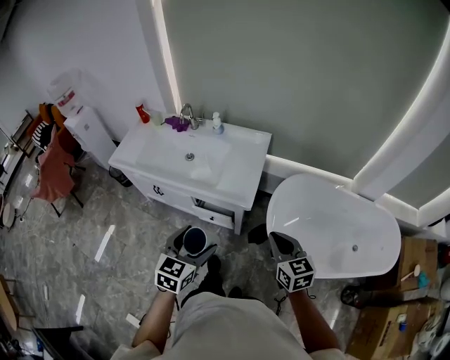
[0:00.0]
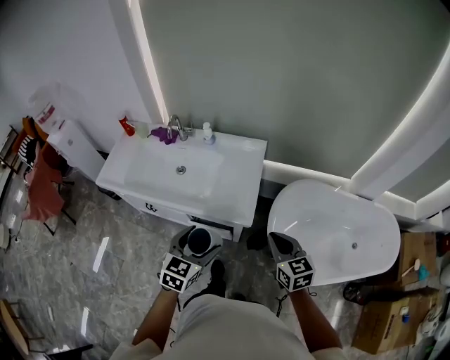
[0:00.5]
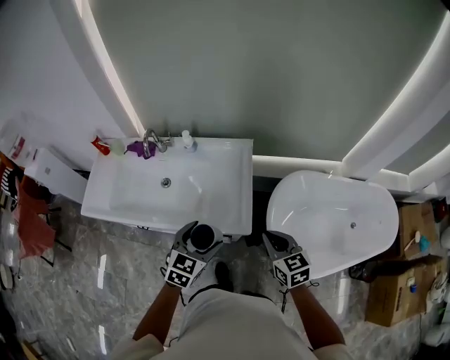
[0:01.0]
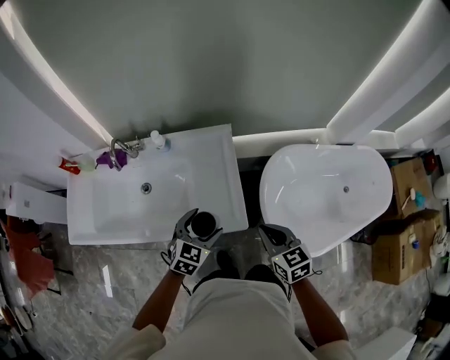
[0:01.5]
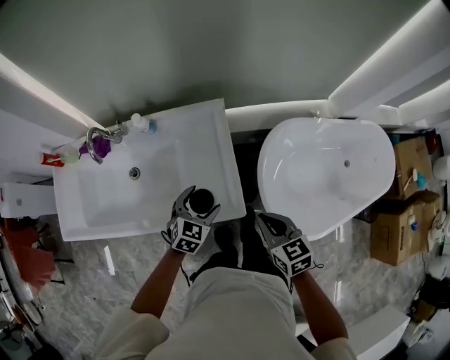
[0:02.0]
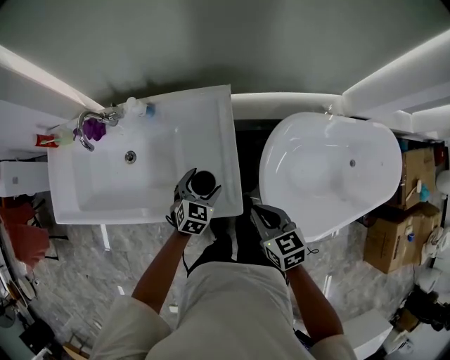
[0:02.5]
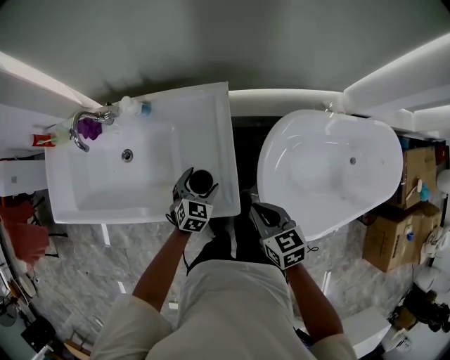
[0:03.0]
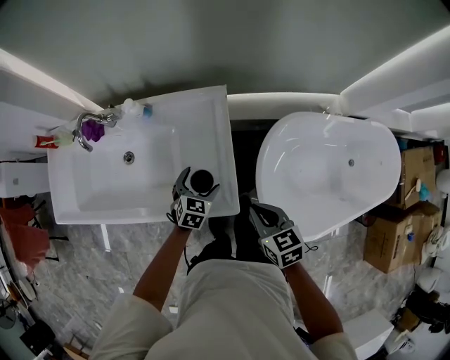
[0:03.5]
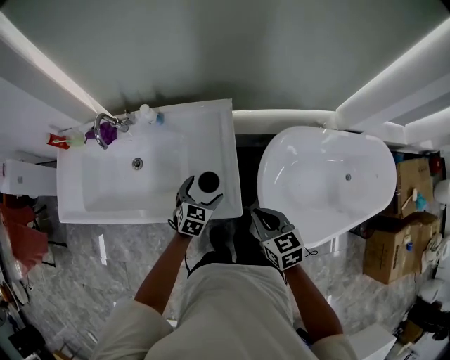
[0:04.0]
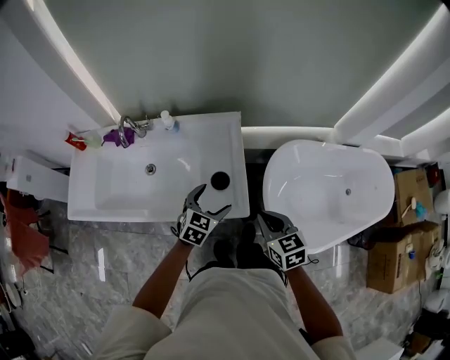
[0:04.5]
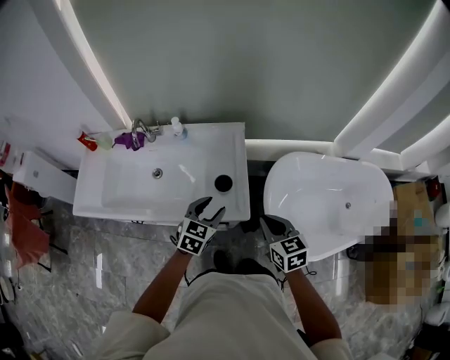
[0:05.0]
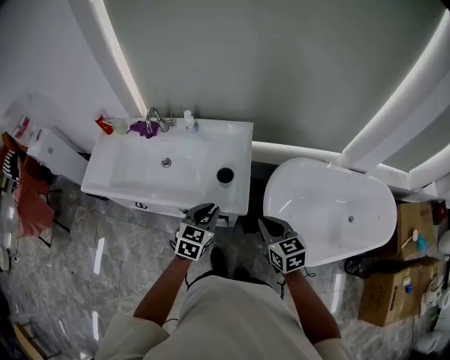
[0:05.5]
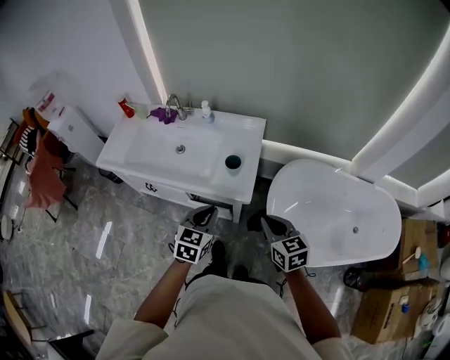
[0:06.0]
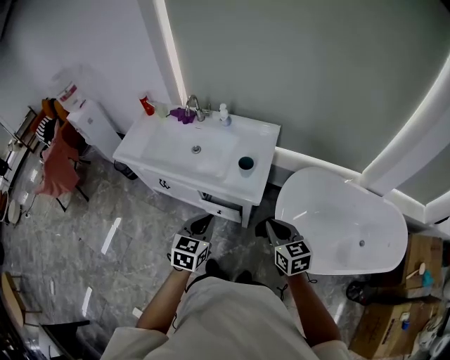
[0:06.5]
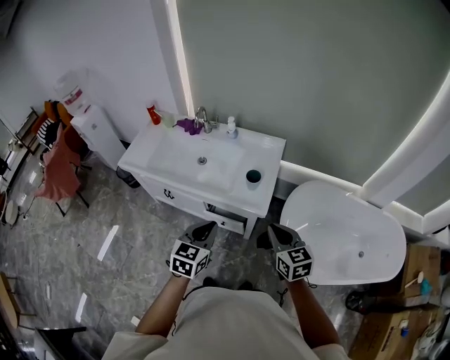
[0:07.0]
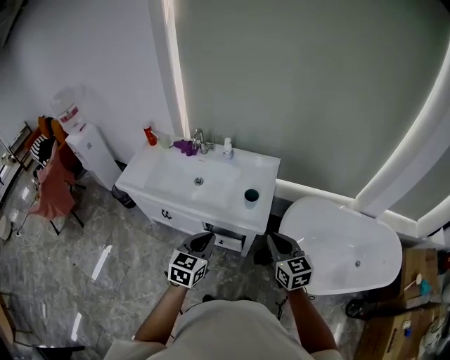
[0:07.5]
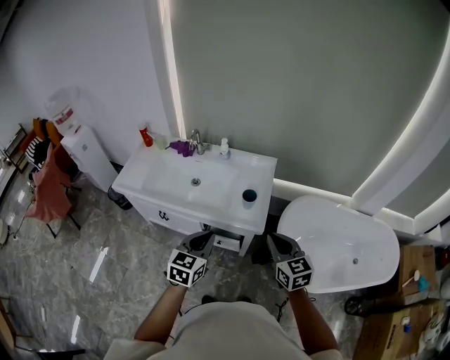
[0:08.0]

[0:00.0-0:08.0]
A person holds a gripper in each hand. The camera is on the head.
0:00.0 to 0:02.0: The right gripper travels forward and downward by some 25 cm, and rotates about 20 degrees; the left gripper heads forward and downward, covering roughly 40 cm, and turns by about 30 degrees.
0:04.0 to 0:06.0: The right gripper goes some 20 cm backward and upward; the left gripper heads backward and upward, covering approximately 30 cm, rotates some 20 degrees, and closes up.
0:06.0 to 0:08.0: The left gripper moves to the left and upward, roughly 10 cm, while the right gripper is displaced upward and to the left by roughly 10 cm.

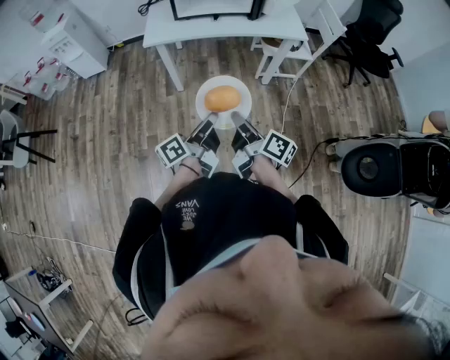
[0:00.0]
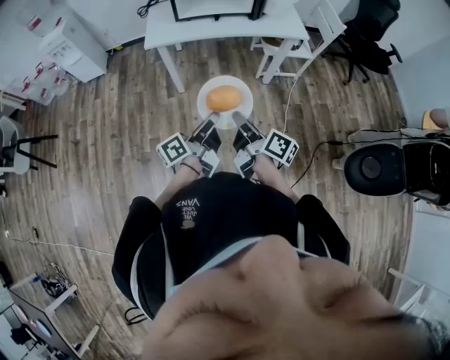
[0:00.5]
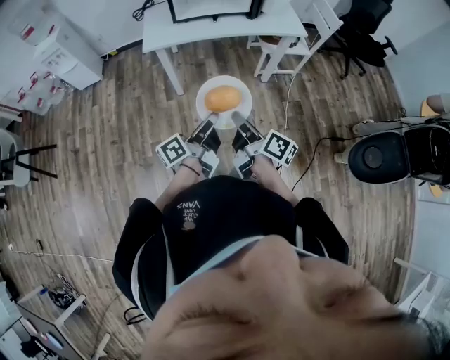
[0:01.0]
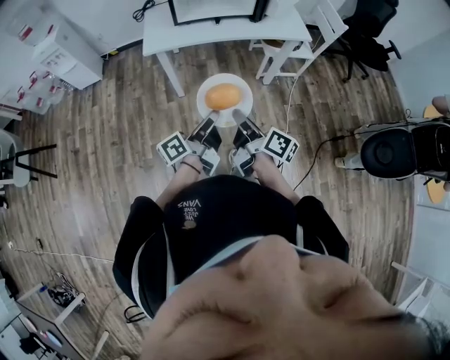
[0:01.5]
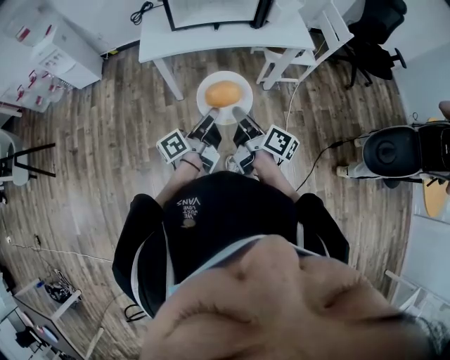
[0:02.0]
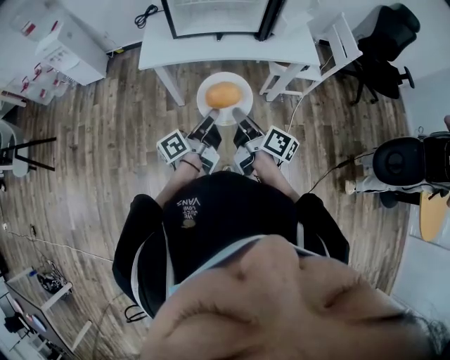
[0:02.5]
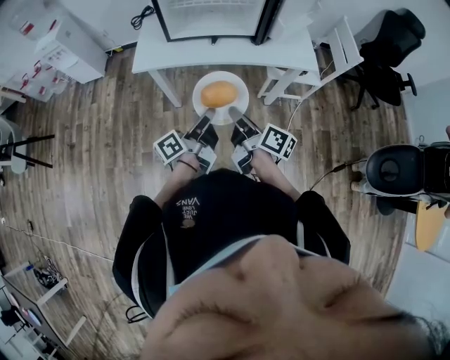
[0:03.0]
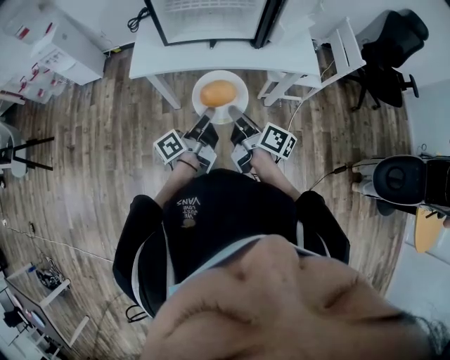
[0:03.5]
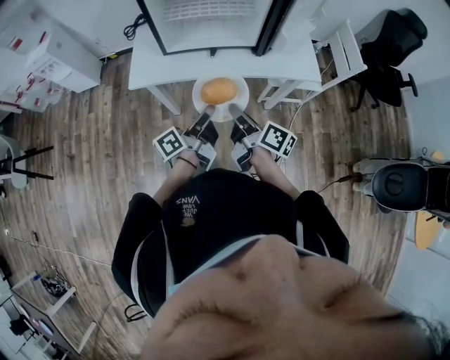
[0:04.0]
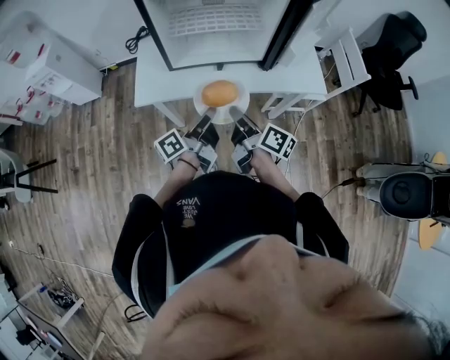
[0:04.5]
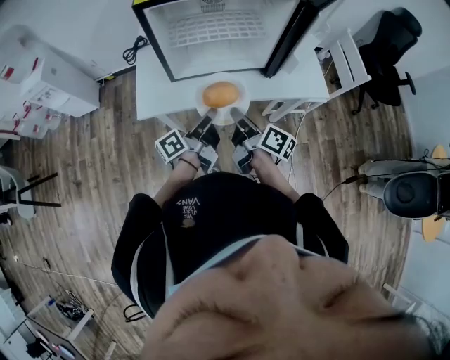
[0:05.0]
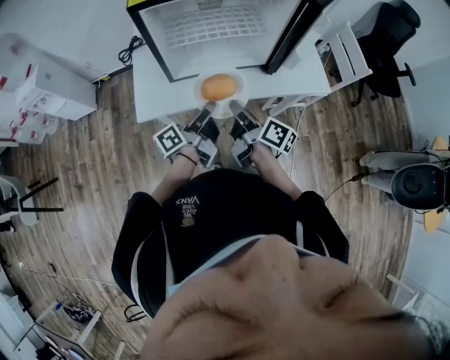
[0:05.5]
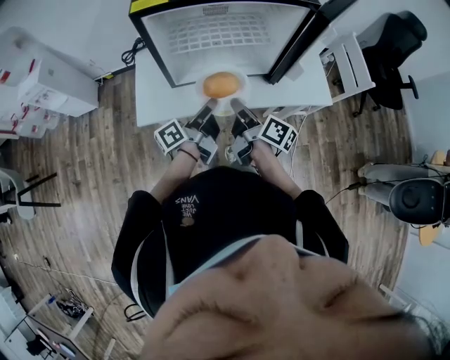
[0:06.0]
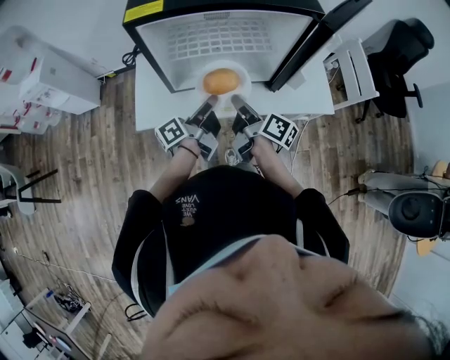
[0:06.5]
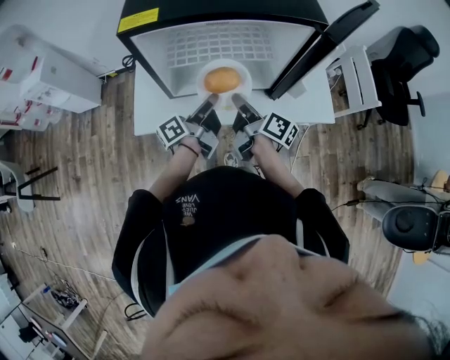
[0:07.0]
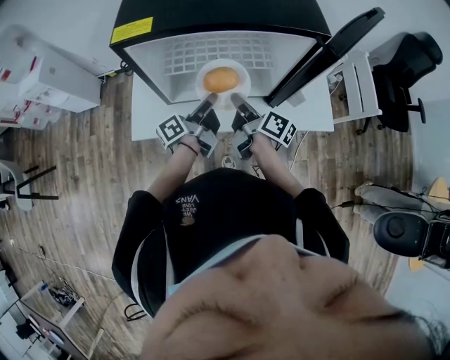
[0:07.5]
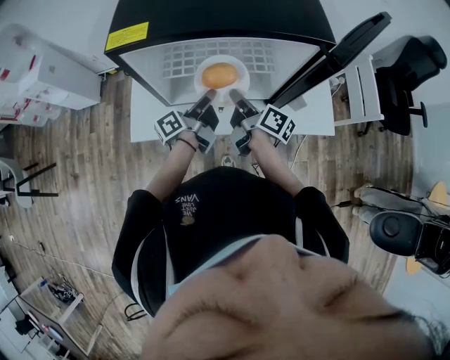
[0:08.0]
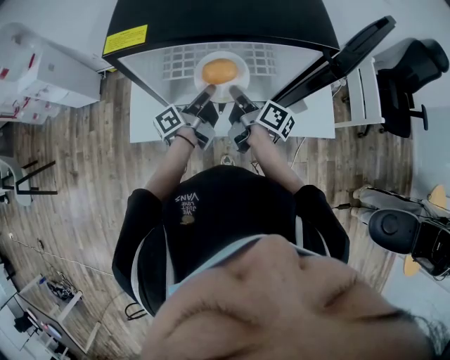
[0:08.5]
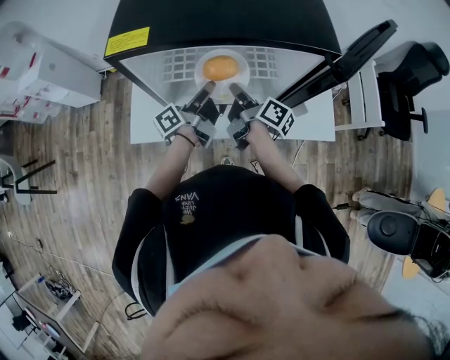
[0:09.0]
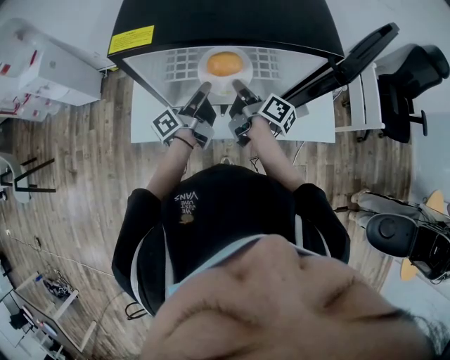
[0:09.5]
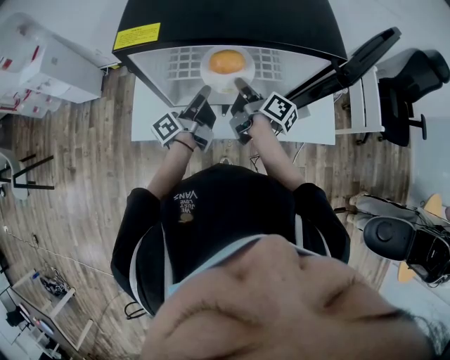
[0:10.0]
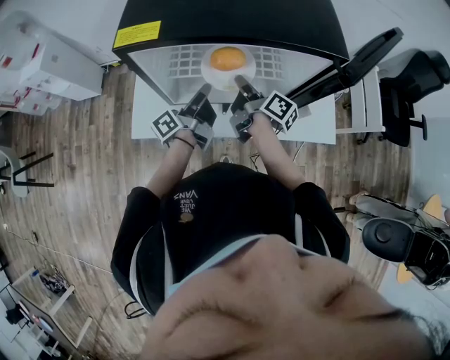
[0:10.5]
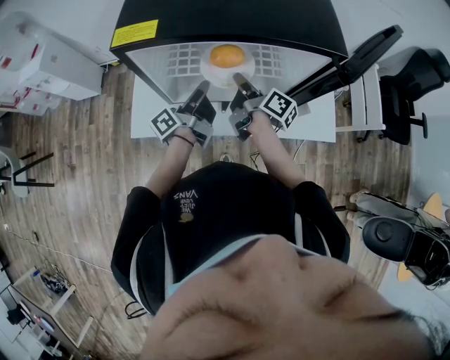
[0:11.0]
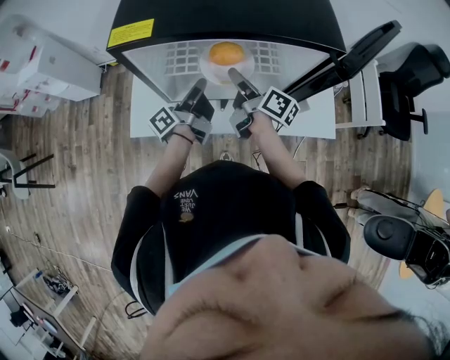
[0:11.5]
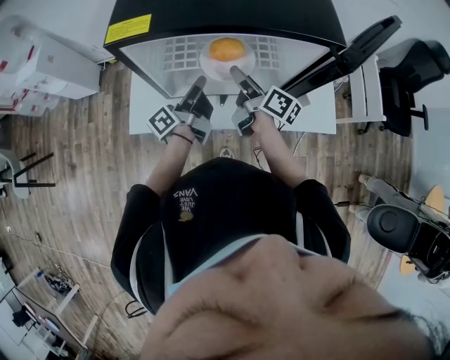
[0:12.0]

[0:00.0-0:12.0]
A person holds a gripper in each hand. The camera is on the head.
0:00.0 to 0:02.0: Both grippers travel together forward, about 15 cm.
0:02.0 to 0:04.0: The two grippers go about 20 cm forward.
0:04.0 to 0:06.0: The two grippers go approximately 15 cm forward.
0:06.0 to 0:08.0: The two grippers go roughly 15 cm forward.
0:08.0 to 0:10.0: The grippers move only a little.
0:10.0 to 0:12.0: The right gripper opens up.

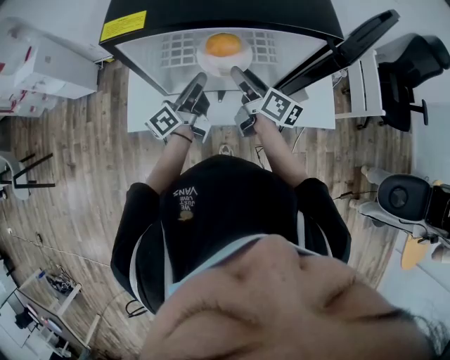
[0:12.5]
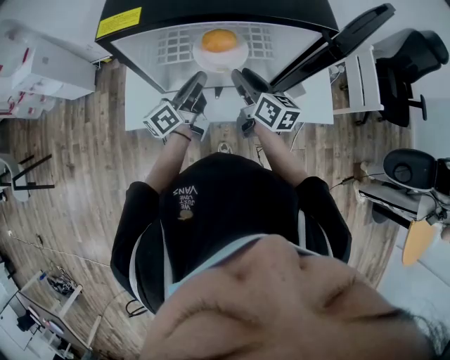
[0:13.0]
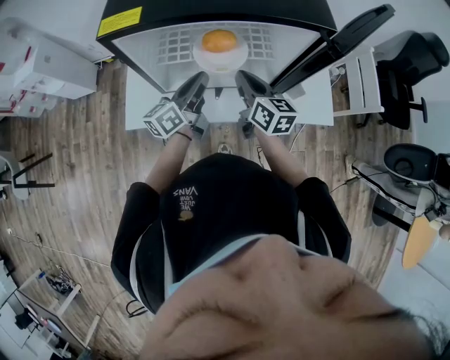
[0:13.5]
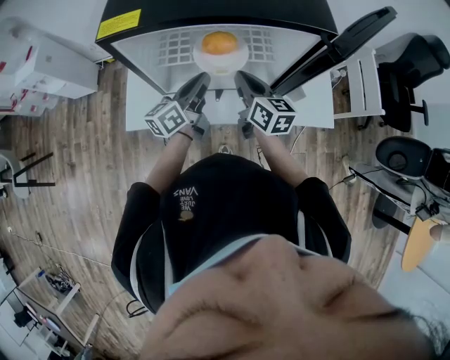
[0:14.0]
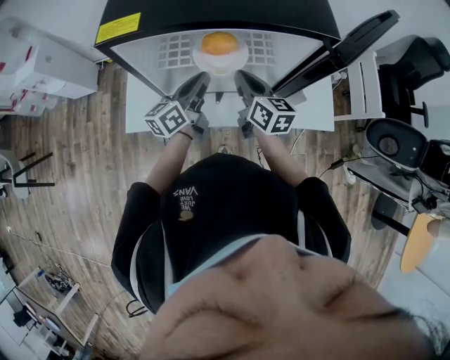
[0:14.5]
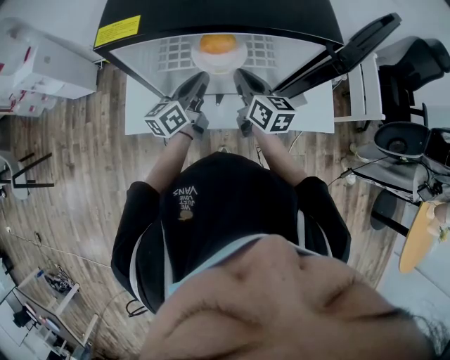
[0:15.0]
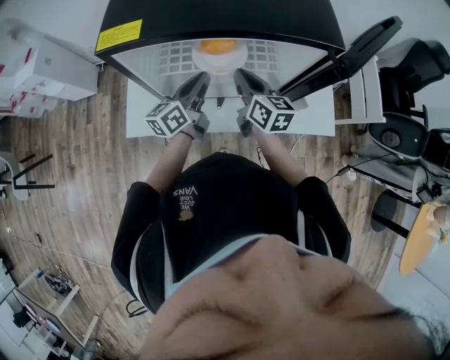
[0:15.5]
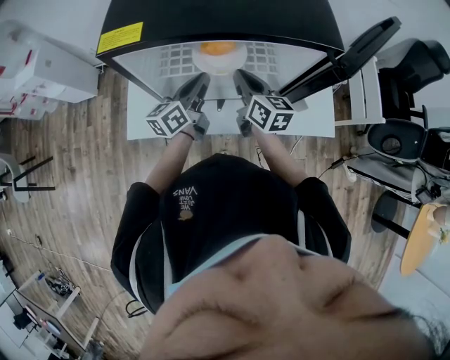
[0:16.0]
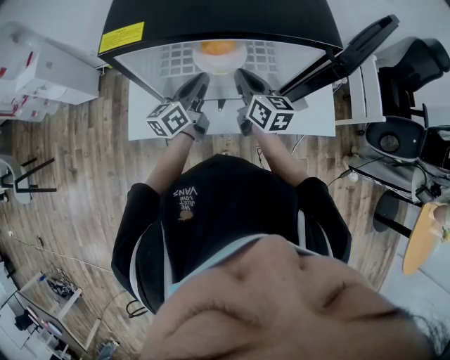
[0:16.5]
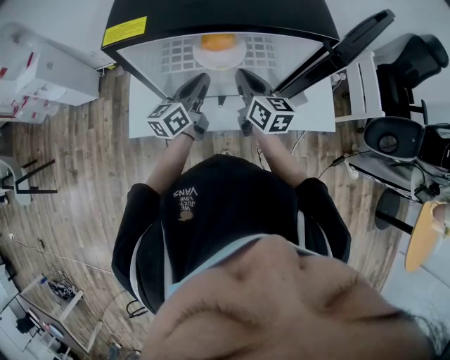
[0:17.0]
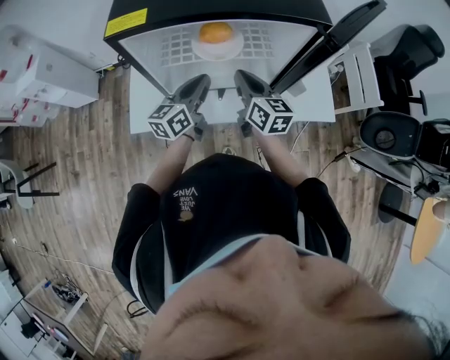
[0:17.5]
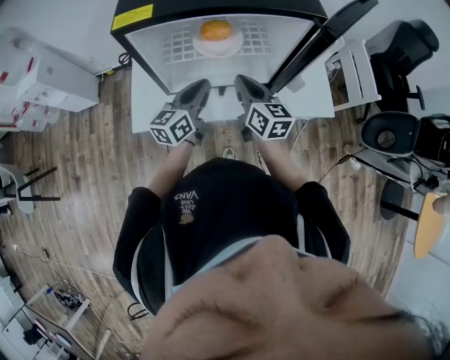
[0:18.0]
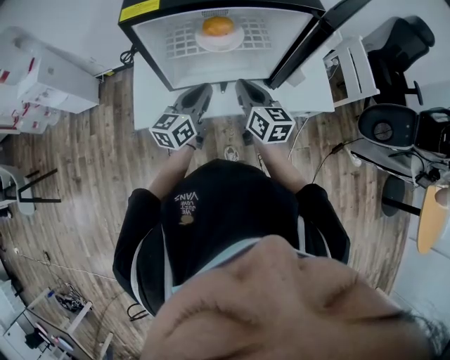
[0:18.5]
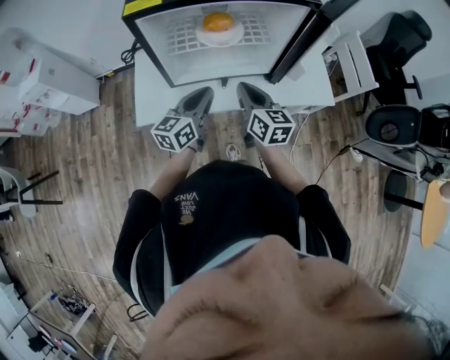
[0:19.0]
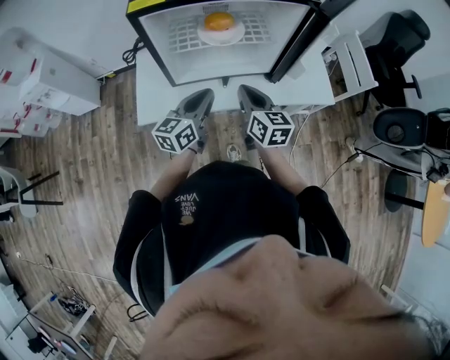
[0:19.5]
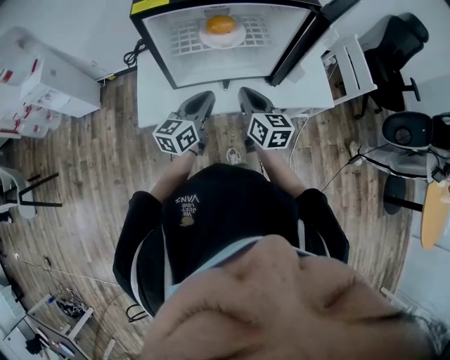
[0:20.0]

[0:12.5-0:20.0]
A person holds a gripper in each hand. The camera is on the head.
0:12.5 to 0:14.5: The right gripper swivels approximately 30 degrees, and closes its fingers; the left gripper rotates approximately 20 degrees.
0:14.5 to 0:16.5: The grippers move only a little.
0:16.5 to 0:18.0: Both grippers move backward, some 10 cm.
0:18.0 to 0:20.0: Both grippers travel together backward, roughly 5 cm.
